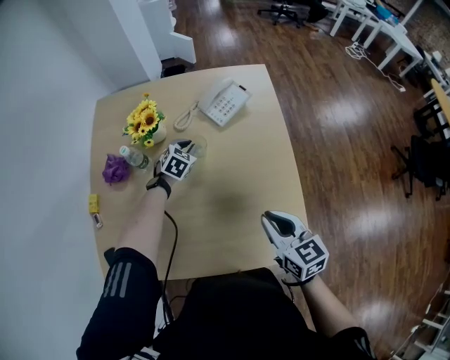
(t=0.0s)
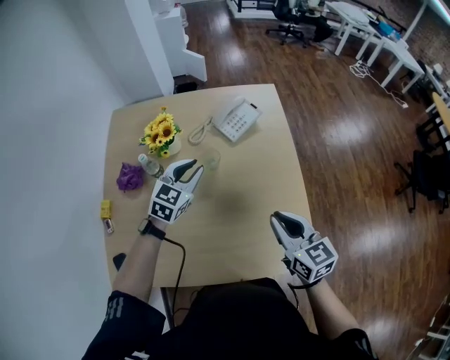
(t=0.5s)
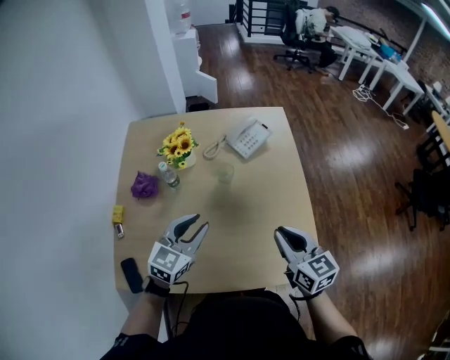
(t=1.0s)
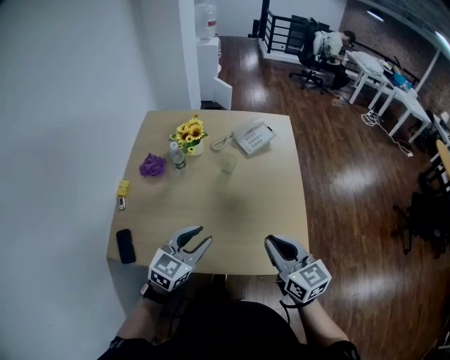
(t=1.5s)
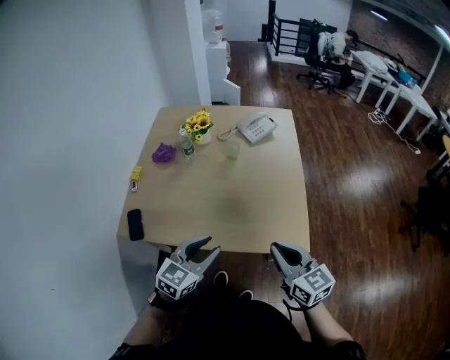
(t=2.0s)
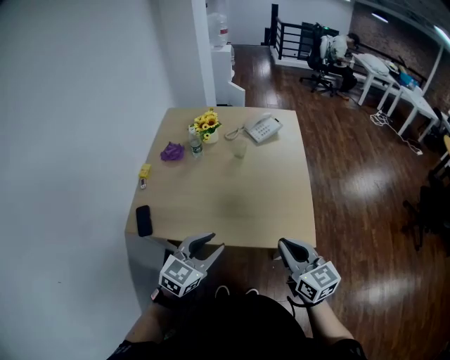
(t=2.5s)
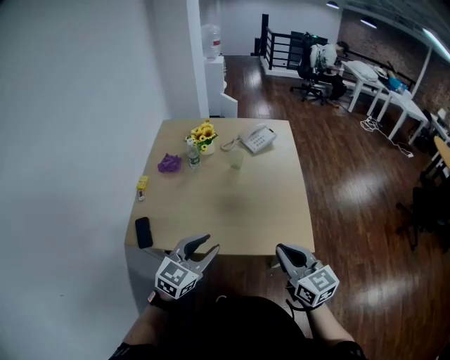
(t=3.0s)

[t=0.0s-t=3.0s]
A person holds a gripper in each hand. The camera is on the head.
t=0.0s to t=1.5s: The right gripper goes roughly 15 cm backward, upward and to the left, while the left gripper moves backward and upward, approximately 40 cm, and rotates roughly 30 degrees.
t=1.5s to t=3.0s: Both grippers move backward, about 15 cm.

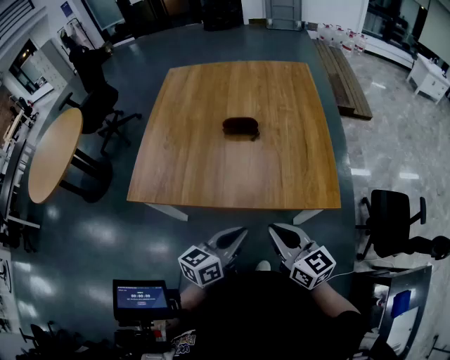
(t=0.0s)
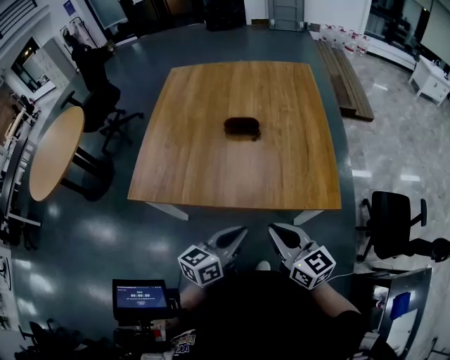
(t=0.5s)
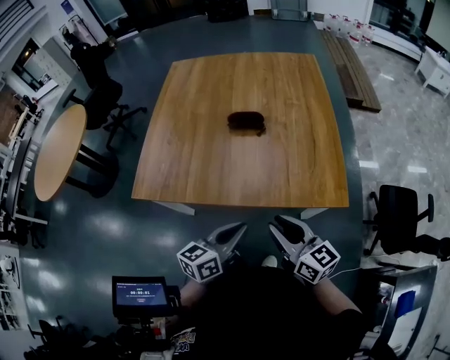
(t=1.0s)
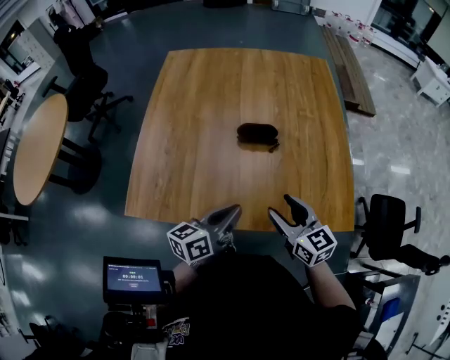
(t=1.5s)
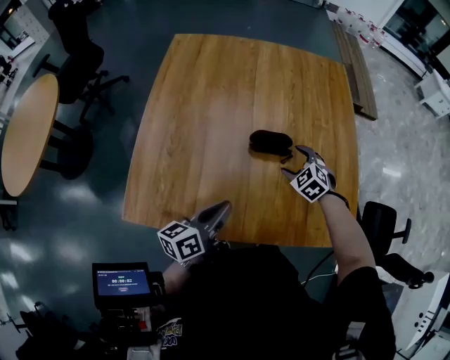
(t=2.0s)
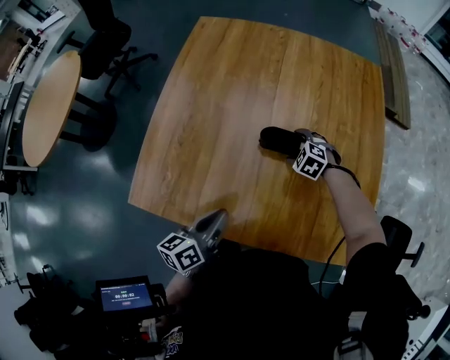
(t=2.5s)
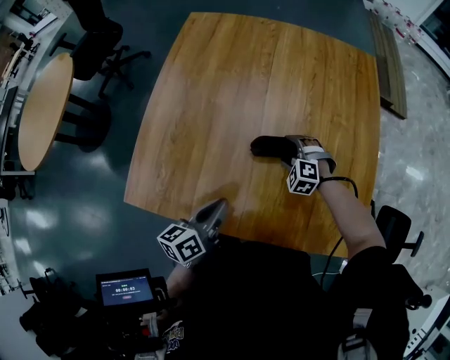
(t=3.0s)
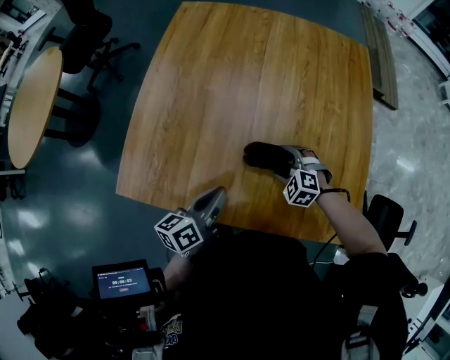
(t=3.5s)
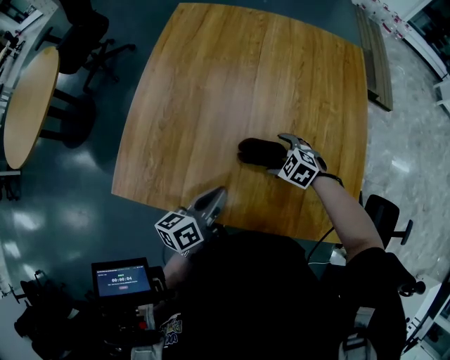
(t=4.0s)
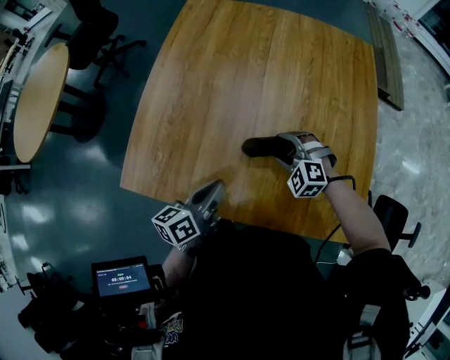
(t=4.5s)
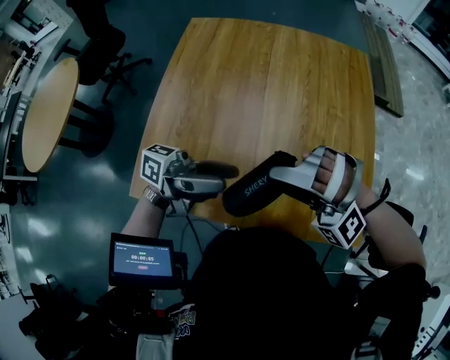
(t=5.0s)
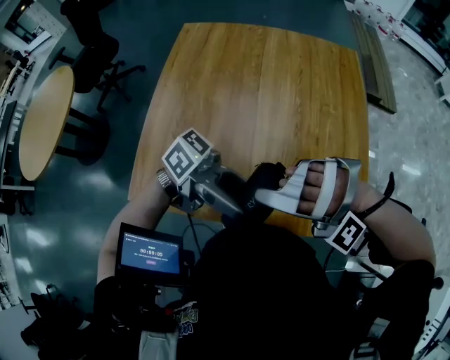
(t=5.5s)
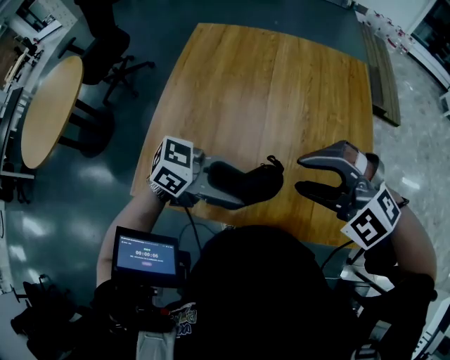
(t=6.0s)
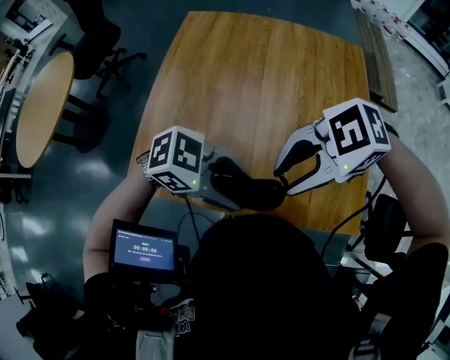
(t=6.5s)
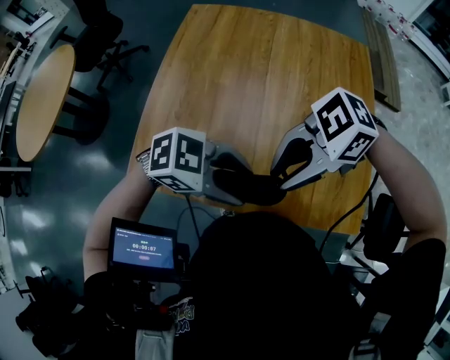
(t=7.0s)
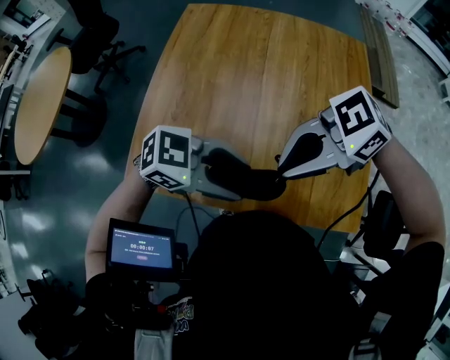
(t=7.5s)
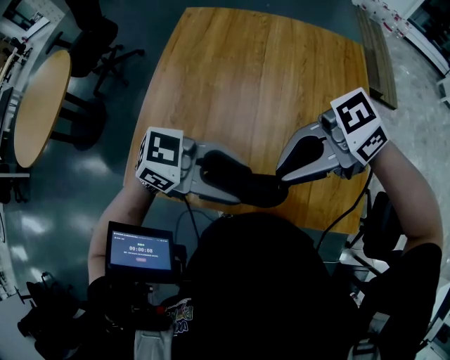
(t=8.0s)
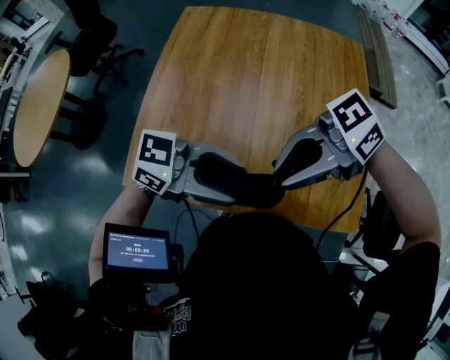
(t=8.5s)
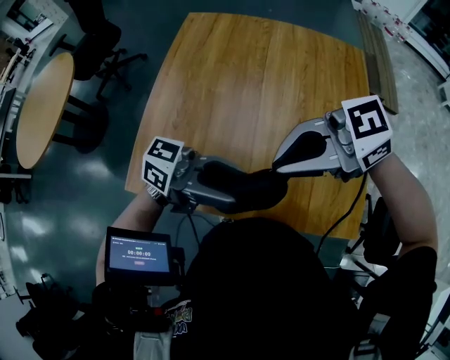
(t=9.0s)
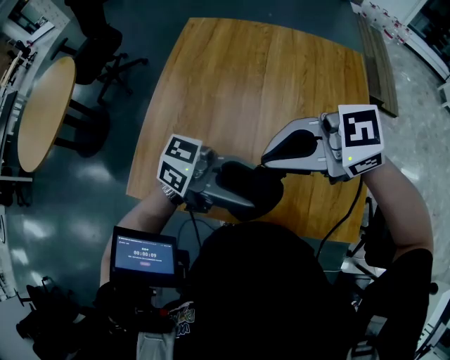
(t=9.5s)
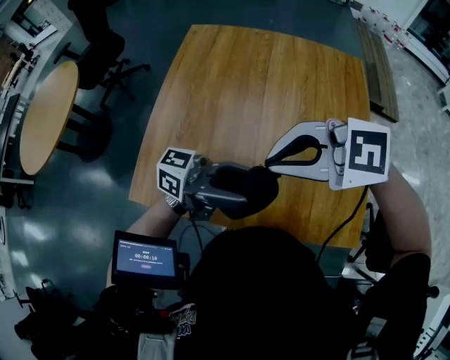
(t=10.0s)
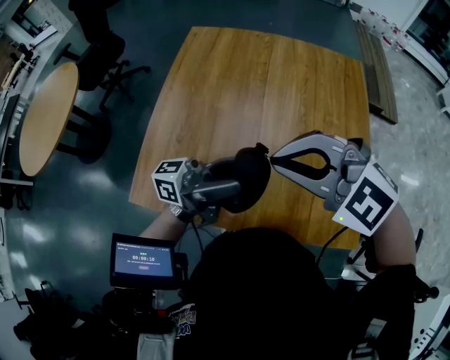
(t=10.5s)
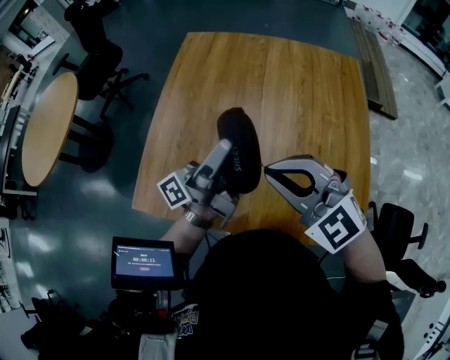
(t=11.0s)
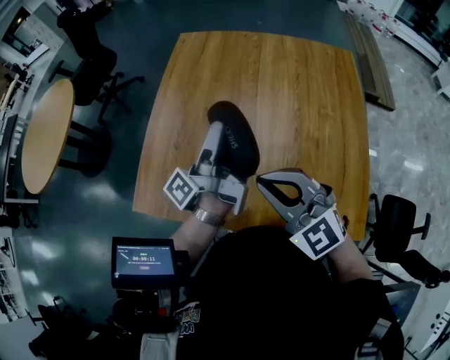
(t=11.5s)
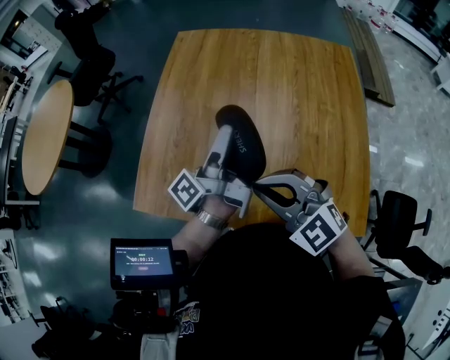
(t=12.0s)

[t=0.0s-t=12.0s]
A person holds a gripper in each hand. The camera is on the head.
t=0.0s to t=2.0s: The right gripper travels forward and downward by about 40 cm, tilts its fingers some 50 degrees downward, and opens its fingers. Meanwhile the left gripper shifts some 25 cm forward and to the left.
t=2.0s to t=4.0s: The right gripper heads to the left and downward, covering roughly 5 cm, travels forward and back again, about 5 cm each way, and turns by approximately 20 degrees.
t=4.0s to t=6.0s: The right gripper shifts about 35 cm upward, rotates around the line of its fingers by some 40 degrees, counterclockwise from behind, and closes up, while the left gripper moves upward, some 15 cm, turns by about 70 degrees, and opens up.
t=6.0s to t=8.0s: The right gripper swivels approximately 80 degrees, and closes its fingers.
t=8.0s to t=10.0s: The left gripper points its fingers about 30 degrees further upward, while the right gripper moves approximately 5 cm, and swivels some 40 degrees.
t=10.0s to t=12.0s: The right gripper travels downward by some 10 cm, and turns by some 40 degrees, while the left gripper changes place by some 15 cm, and rotates about 70 degrees.

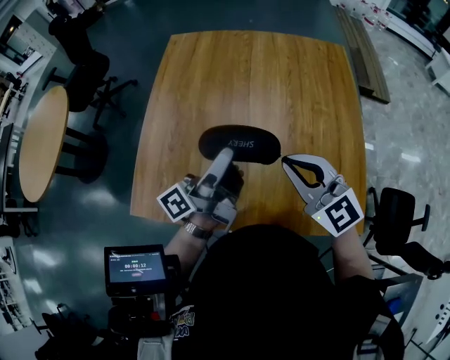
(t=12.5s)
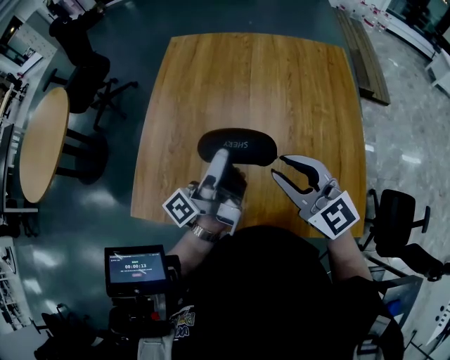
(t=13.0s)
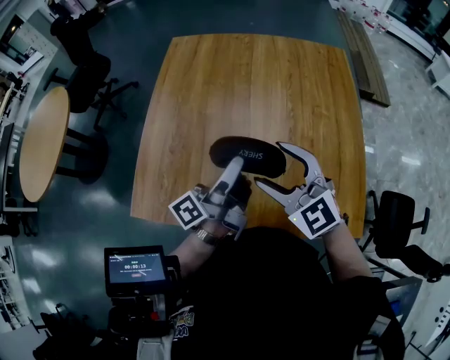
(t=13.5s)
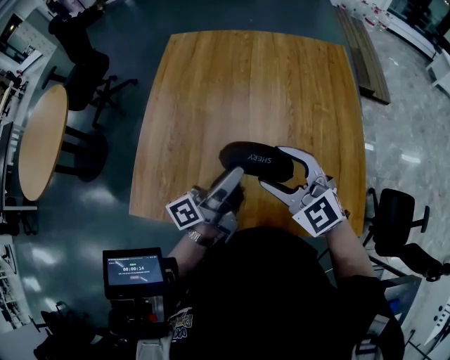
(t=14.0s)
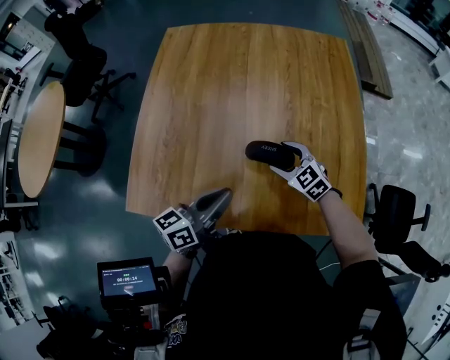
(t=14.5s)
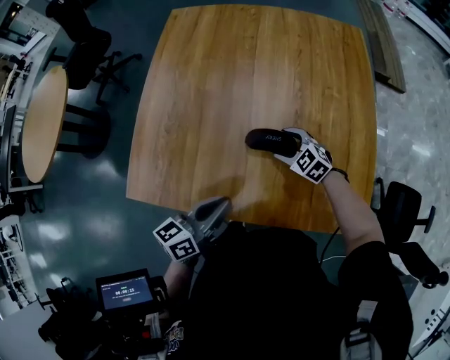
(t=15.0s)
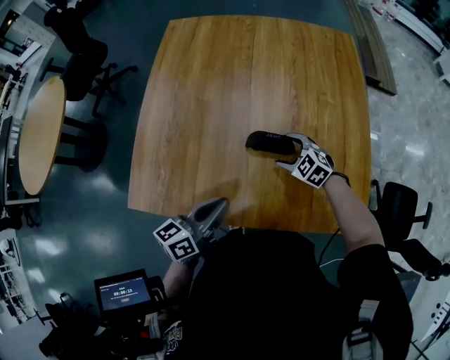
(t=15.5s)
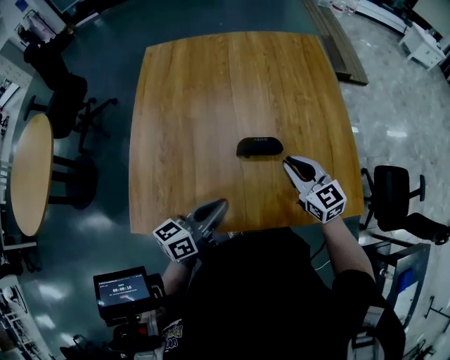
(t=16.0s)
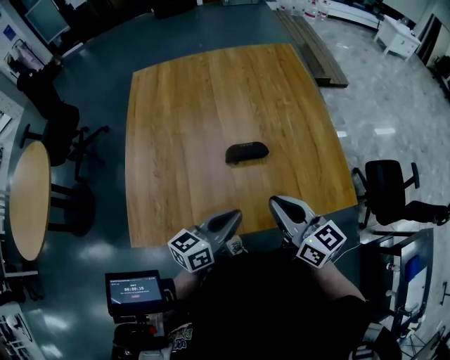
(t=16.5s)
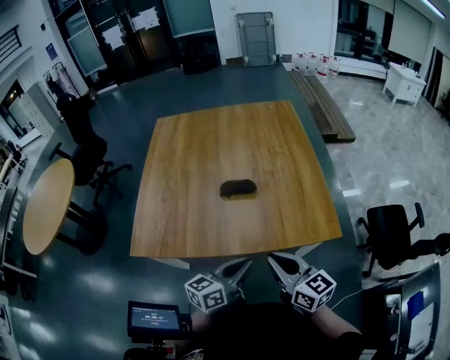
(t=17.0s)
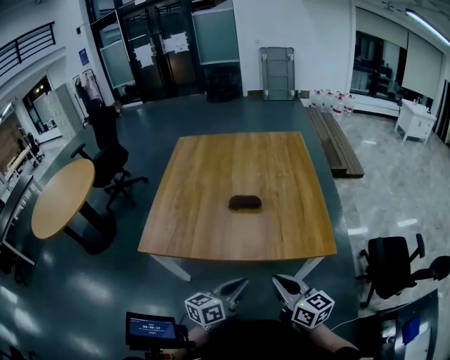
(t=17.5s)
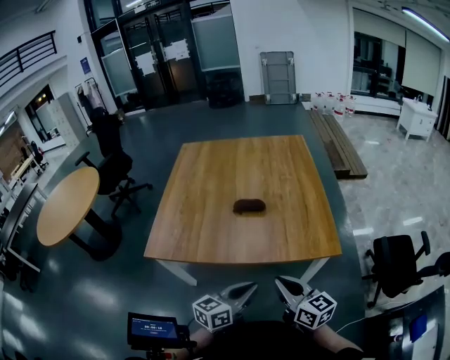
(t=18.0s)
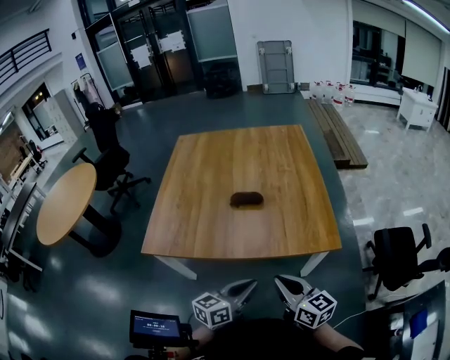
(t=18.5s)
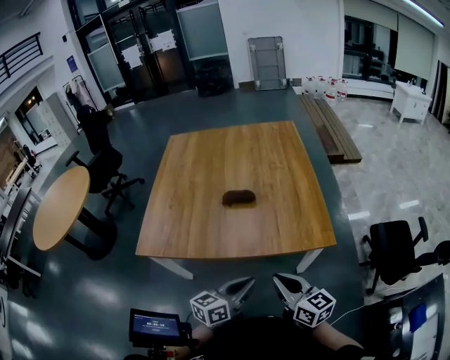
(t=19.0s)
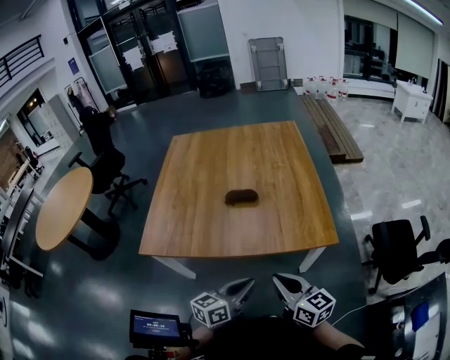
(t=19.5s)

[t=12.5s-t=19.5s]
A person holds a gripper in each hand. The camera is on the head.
t=12.5s to t=14.5s: The right gripper moves downward, approximately 25 cm, turns by about 30 degrees, and opens its fingers, while the left gripper shifts some 15 cm downward and backward, turns by some 40 degrees, and closes up.
t=14.5s to t=16.0s: The right gripper moves upward and backward, about 10 cm, turns by some 30 degrees, and closes its fingers.
t=16.0s to t=17.5s: The left gripper goes approximately 25 cm backward and to the right, while the right gripper travels backward by some 30 cm, and turns by roughly 30 degrees.
t=17.5s to t=19.5s: The grippers stay close to where they were, moving slightly.

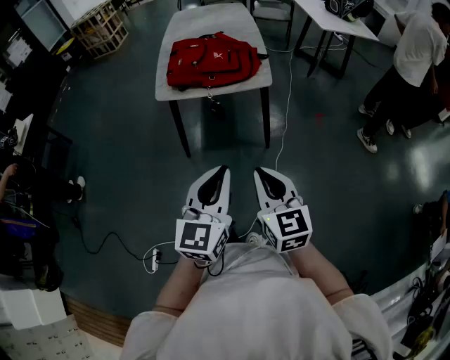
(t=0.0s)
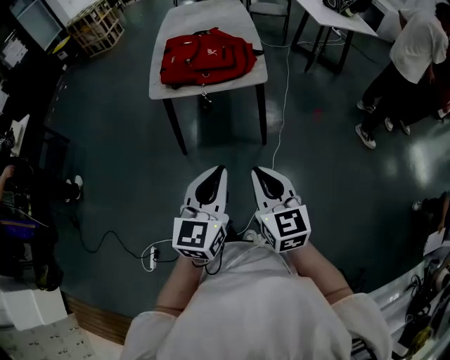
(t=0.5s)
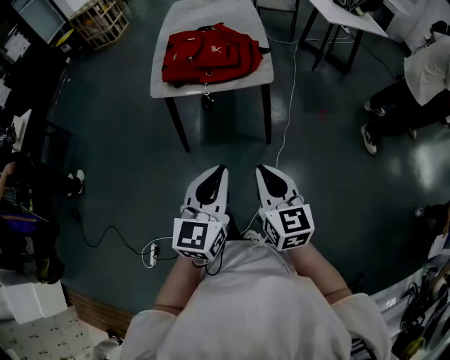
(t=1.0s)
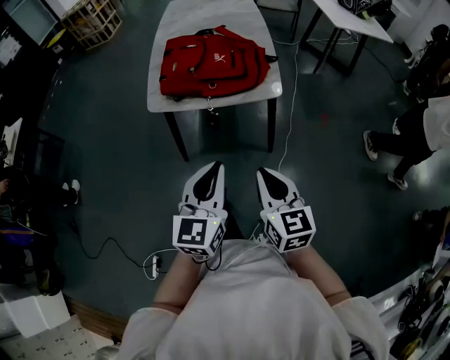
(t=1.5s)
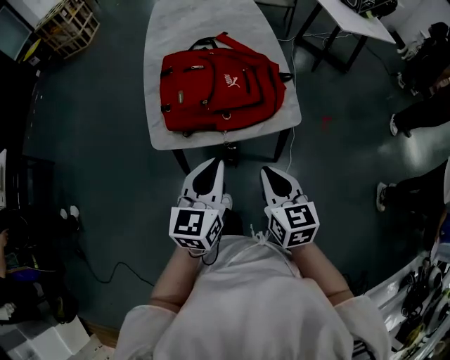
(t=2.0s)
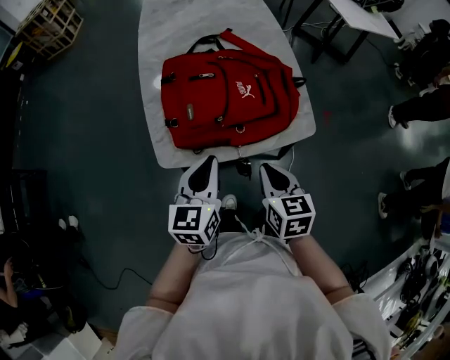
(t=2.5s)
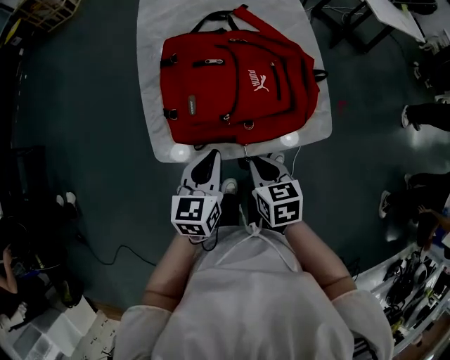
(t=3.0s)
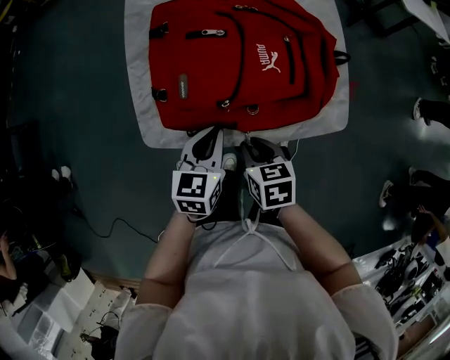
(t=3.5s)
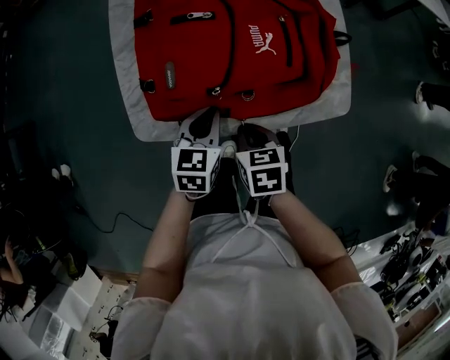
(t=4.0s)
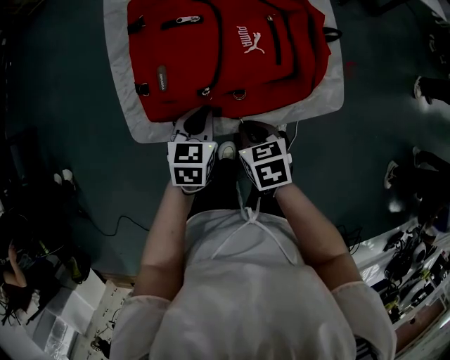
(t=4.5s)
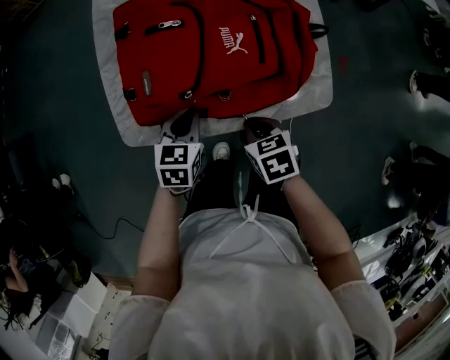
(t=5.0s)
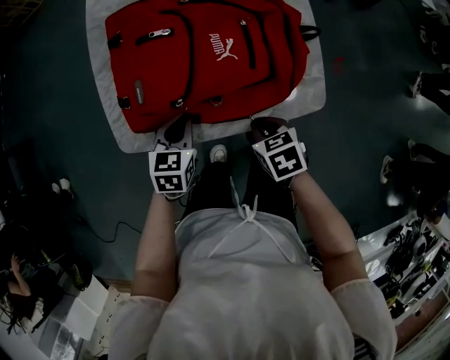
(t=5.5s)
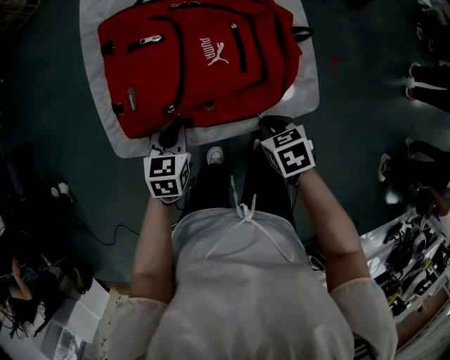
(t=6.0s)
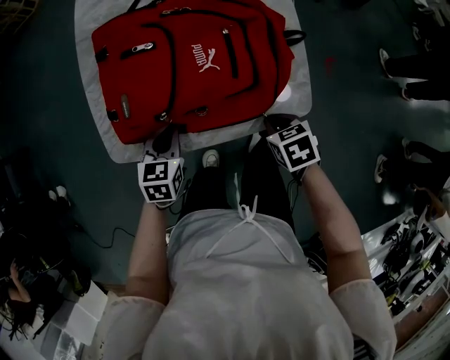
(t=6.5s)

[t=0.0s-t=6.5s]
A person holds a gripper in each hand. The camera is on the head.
t=0.0s to t=2.0s: The grippers both shift forward by about 35 cm.
t=2.0s to t=4.5s: The grippers both shift downward and forward by some 30 cm. The left gripper tilts its fingers some 30 degrees downward; the right gripper points its fingers some 30 degrees further downward.
t=4.5s to t=6.5s: The right gripper goes some 15 cm to the right.
